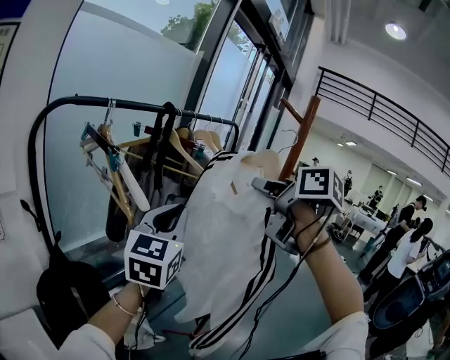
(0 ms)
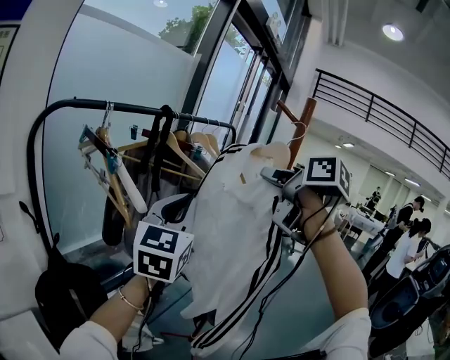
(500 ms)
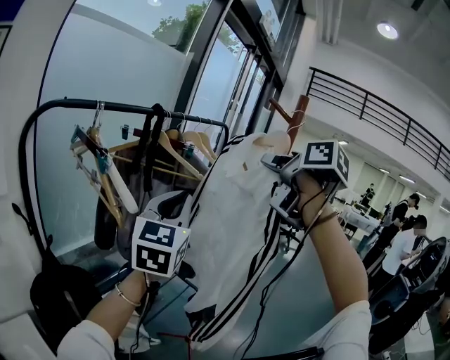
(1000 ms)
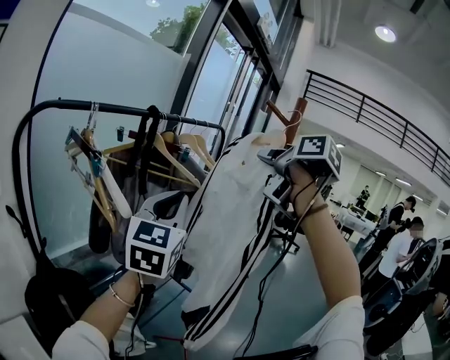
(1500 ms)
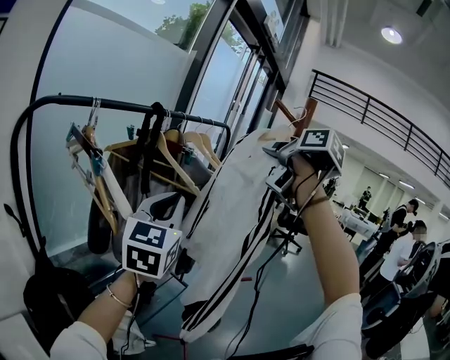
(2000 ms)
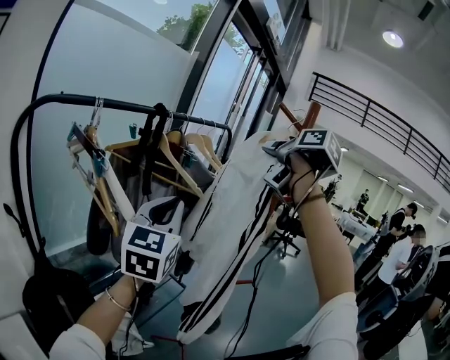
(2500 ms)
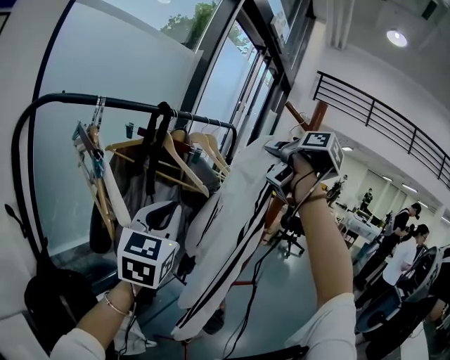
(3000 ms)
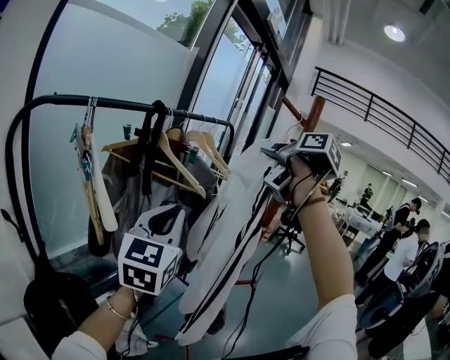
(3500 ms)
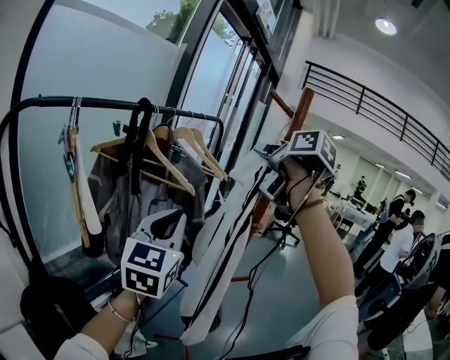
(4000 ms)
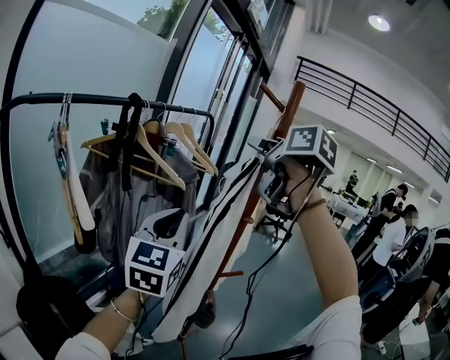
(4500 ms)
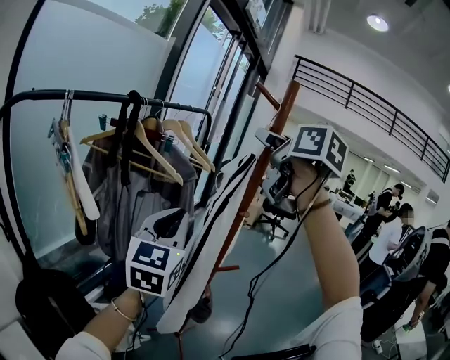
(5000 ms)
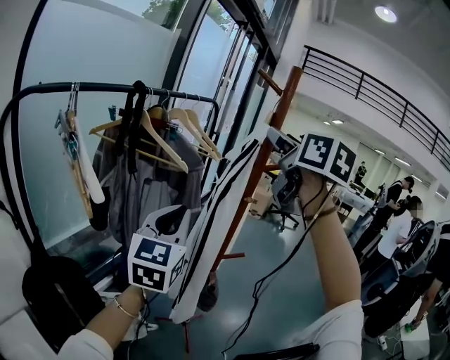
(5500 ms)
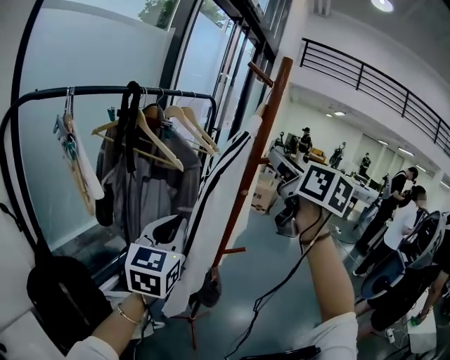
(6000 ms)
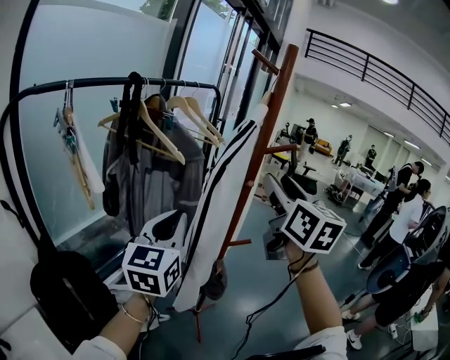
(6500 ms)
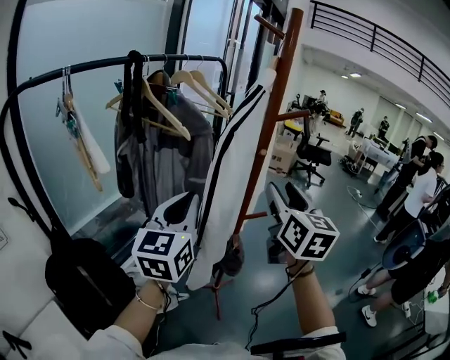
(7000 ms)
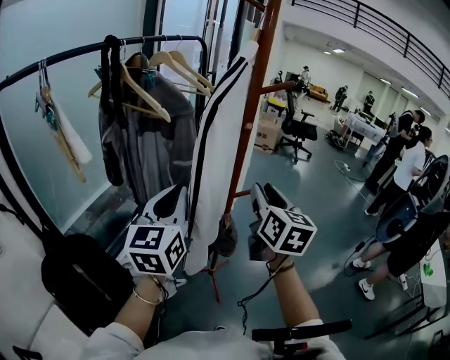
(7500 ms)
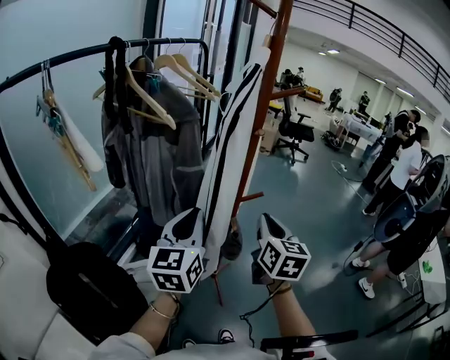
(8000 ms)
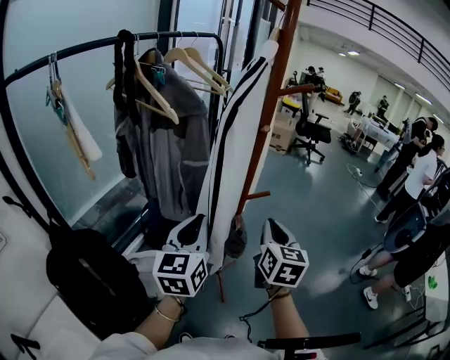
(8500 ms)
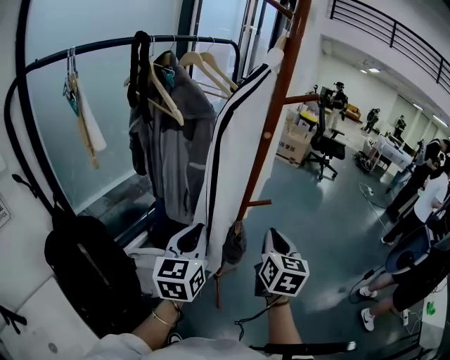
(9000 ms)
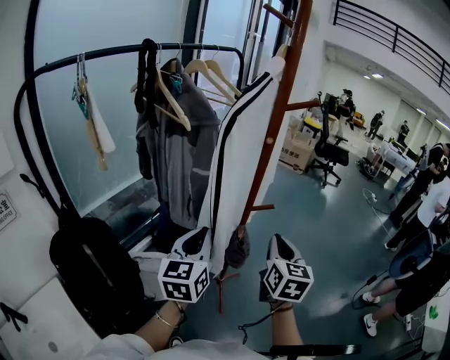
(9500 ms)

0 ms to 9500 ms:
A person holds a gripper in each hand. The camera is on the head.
0 ms to 2000 ms: The left gripper changes place by approximately 5 cm. Meanwhile the right gripper moves upward and forward, roughly 10 cm.
2000 ms to 4000 ms: The grippers make only small movements.
4000 ms to 5500 ms: The right gripper moves backward, roughly 10 cm, turns by approximately 30 degrees, and opens its fingers. The left gripper moves some 5 cm.
5500 ms to 7500 ms: The left gripper heads downward, covering some 10 cm, while the right gripper moves downward, some 30 cm.
7500 ms to 9500 ms: The grippers both shift downward by approximately 10 cm. The right gripper closes.

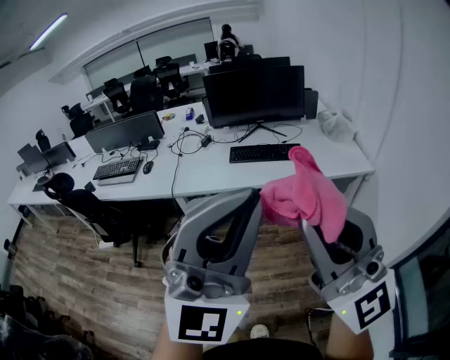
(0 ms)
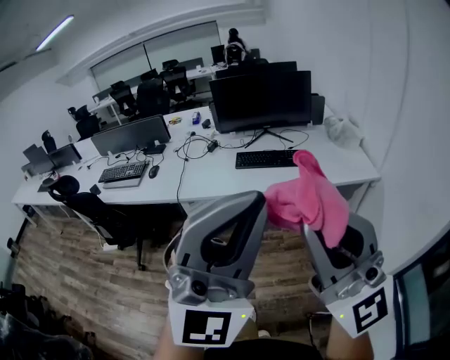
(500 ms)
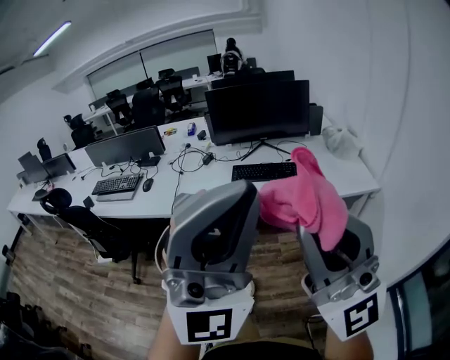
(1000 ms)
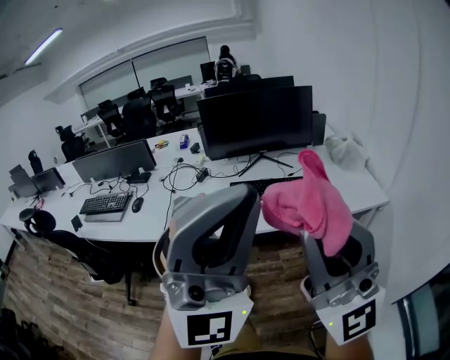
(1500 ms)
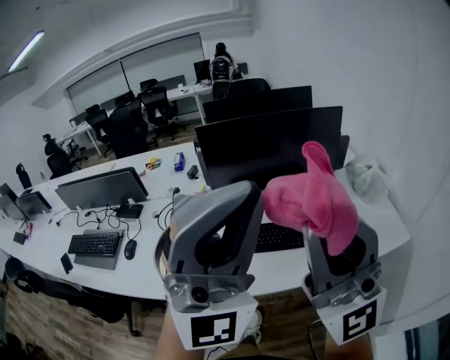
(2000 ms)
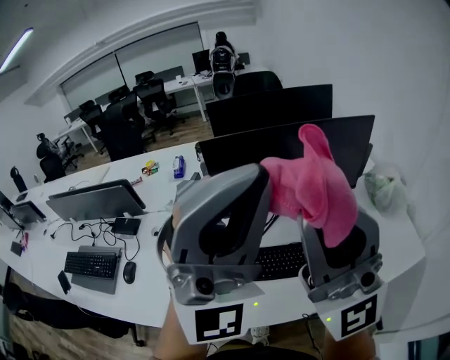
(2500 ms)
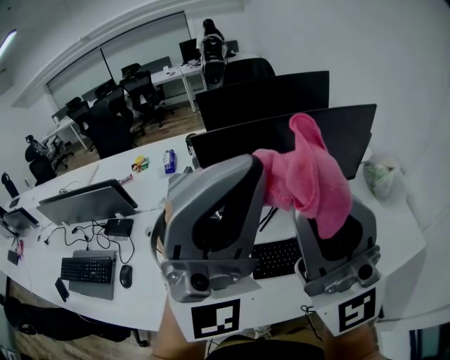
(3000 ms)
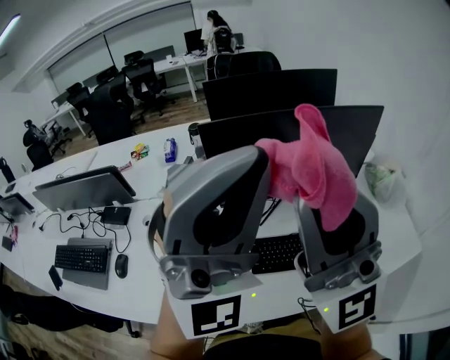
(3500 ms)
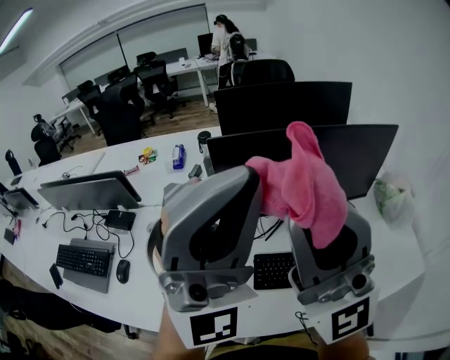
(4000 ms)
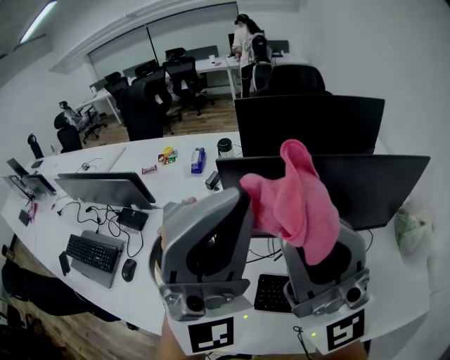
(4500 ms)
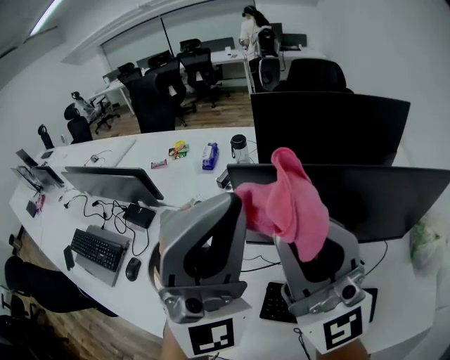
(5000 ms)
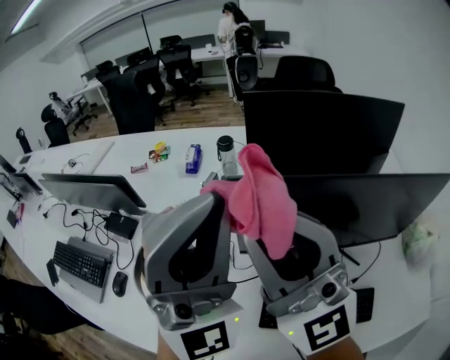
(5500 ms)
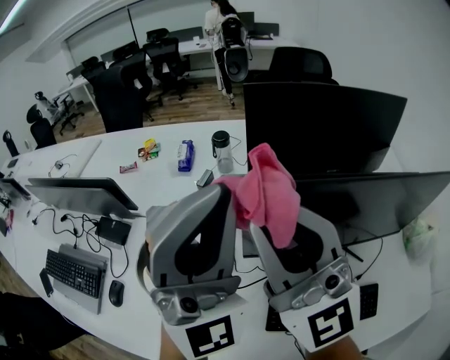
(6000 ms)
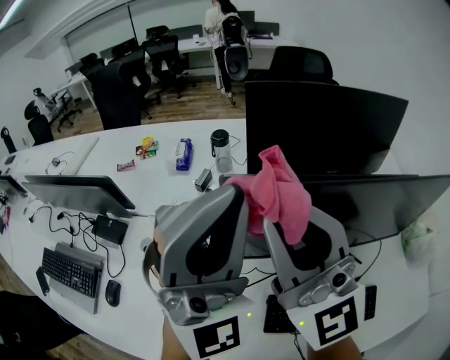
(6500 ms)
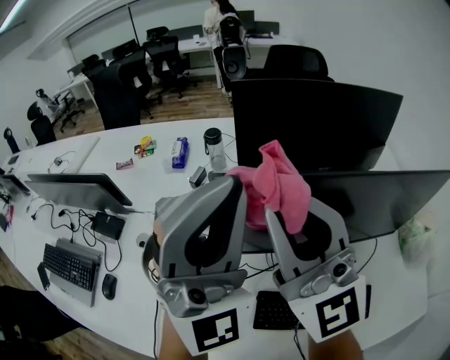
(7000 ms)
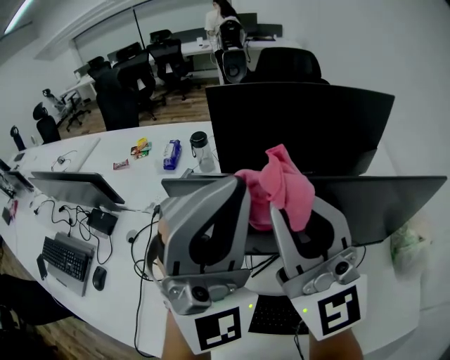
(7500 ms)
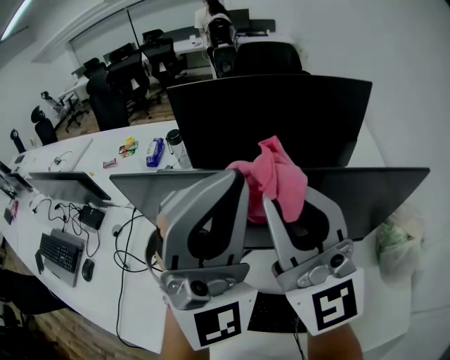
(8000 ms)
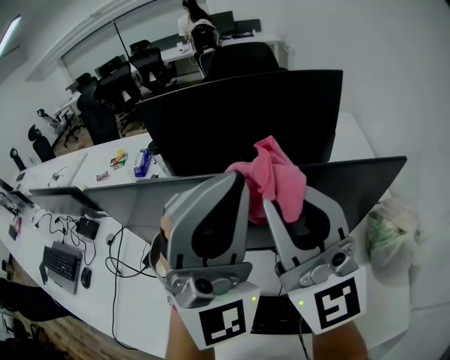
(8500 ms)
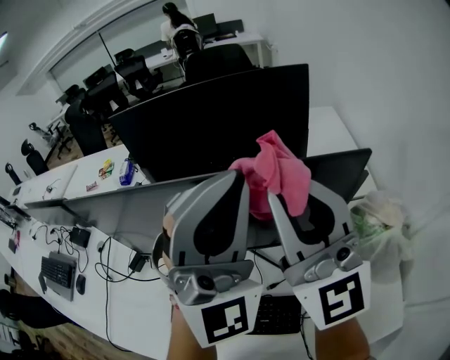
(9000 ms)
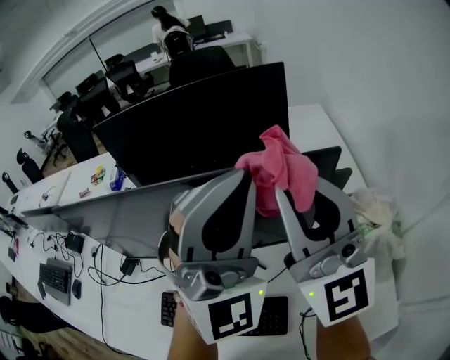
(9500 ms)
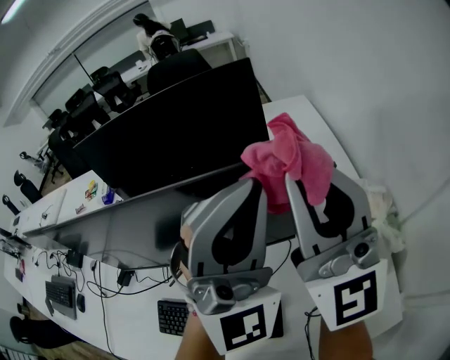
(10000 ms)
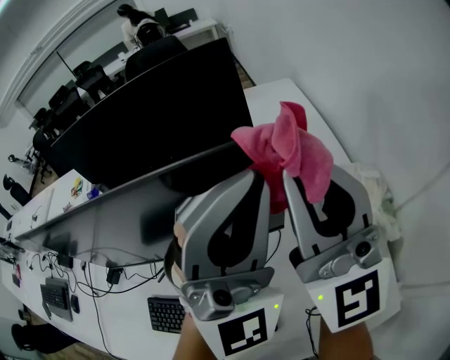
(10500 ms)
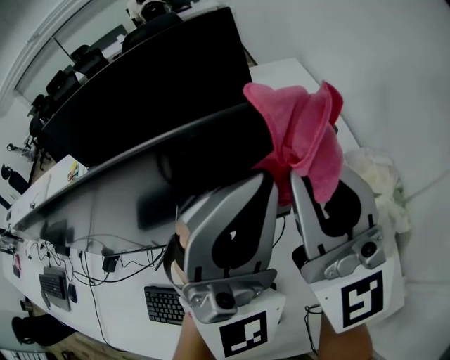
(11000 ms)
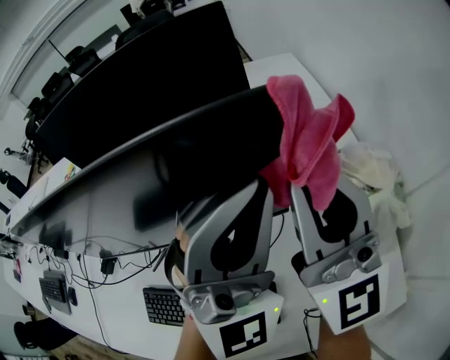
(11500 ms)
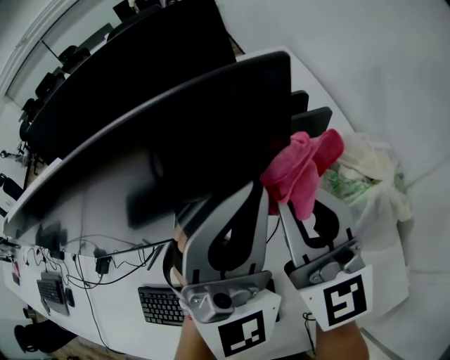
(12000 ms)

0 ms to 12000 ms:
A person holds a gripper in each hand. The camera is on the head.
0 ms to 2000 ms: Both grippers are carried forward, about 50 cm.
2000 ms to 4000 ms: Both grippers travel together forward, approximately 25 cm.
4000 ms to 6000 ms: Both grippers move forward, roughly 20 cm. The right gripper turns by about 20 degrees.
6000 ms to 8000 ms: The grippers both shift to the right by some 25 cm.
8000 ms to 10000 ms: The grippers both shift to the right by some 30 cm.
10000 ms to 12000 ms: The right gripper travels downward by approximately 15 cm, while the left gripper travels downward by about 10 cm.

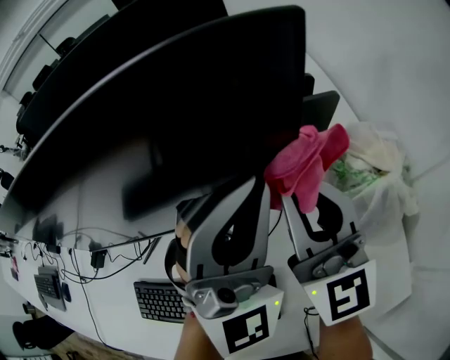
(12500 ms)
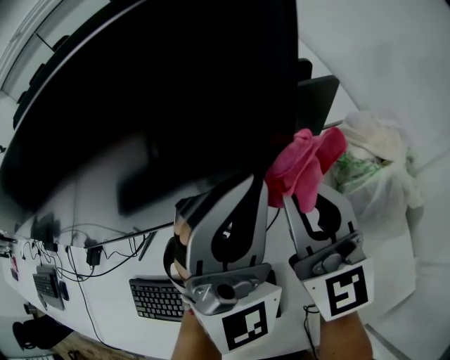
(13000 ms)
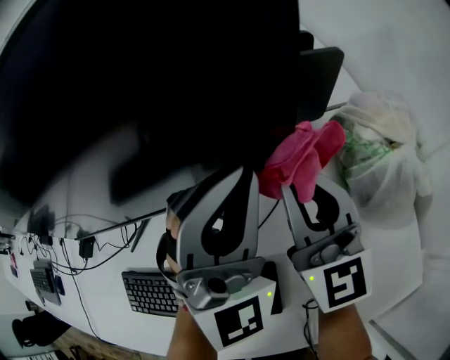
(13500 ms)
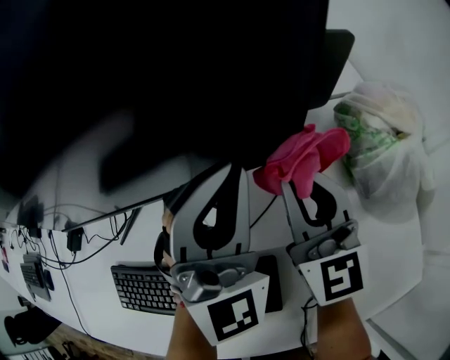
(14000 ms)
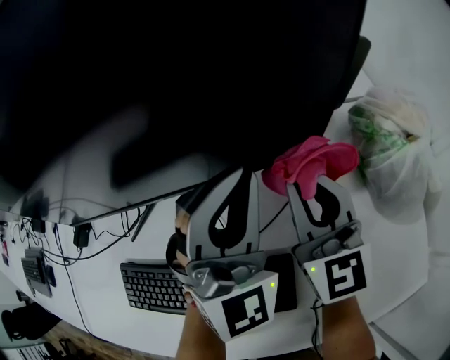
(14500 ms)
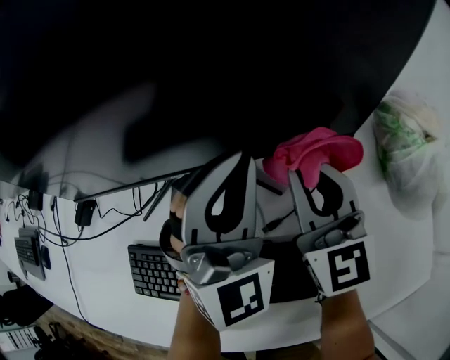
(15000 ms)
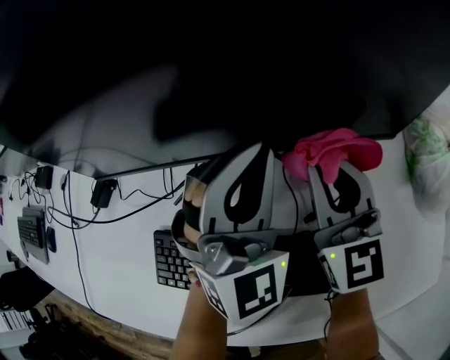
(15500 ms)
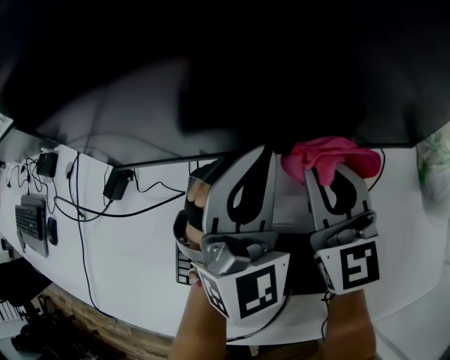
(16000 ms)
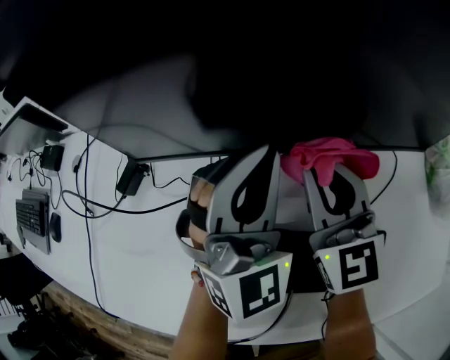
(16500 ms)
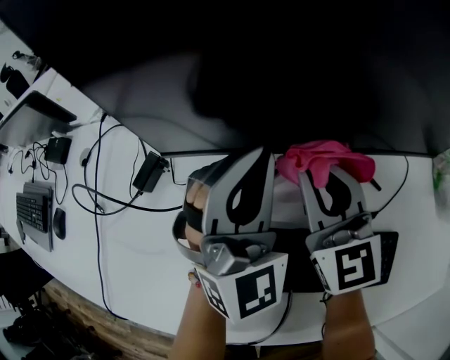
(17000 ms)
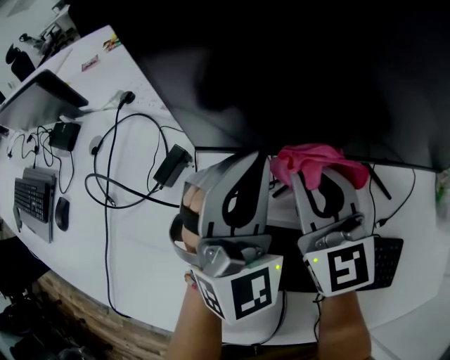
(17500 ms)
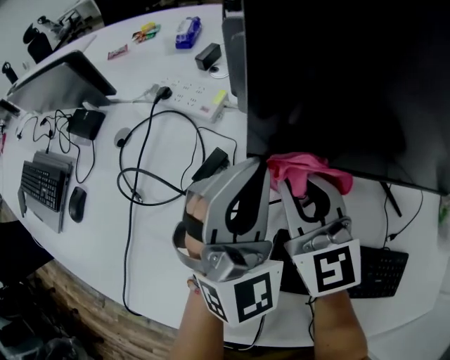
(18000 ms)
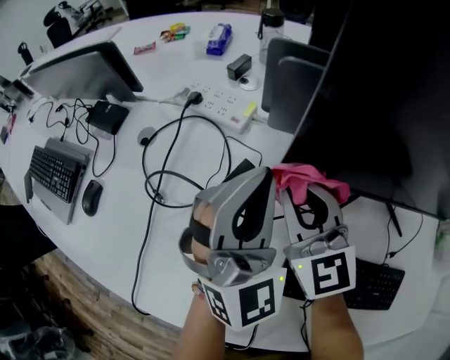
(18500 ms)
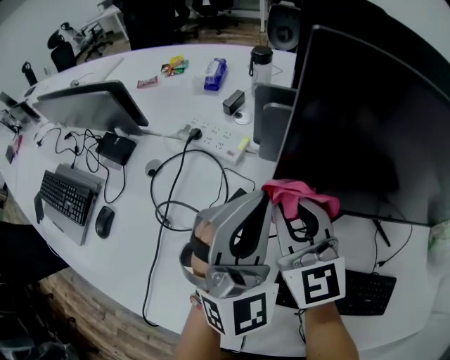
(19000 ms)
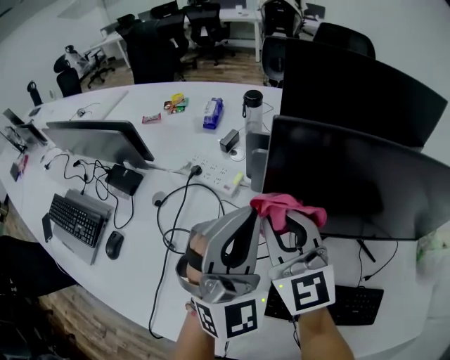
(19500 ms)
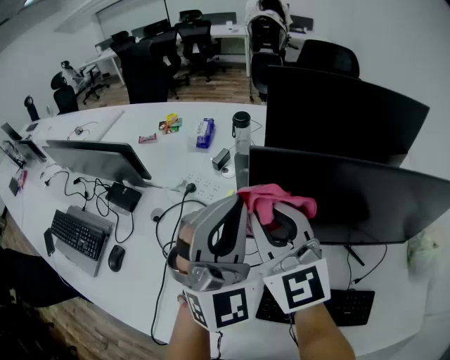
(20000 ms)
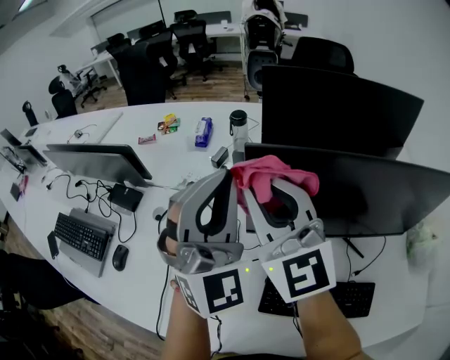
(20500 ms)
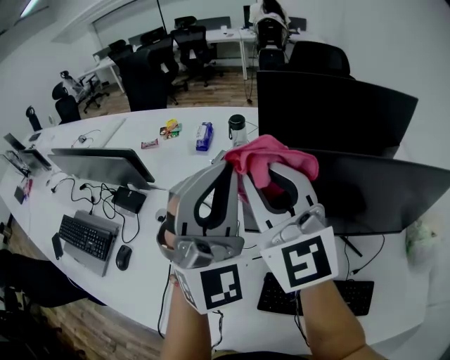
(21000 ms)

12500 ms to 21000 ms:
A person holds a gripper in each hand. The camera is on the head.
12500 ms to 14500 ms: The right gripper travels downward by some 15 cm; the left gripper travels downward and to the left by roughly 15 cm.
14500 ms to 16500 ms: Both grippers move to the left, some 25 cm.
16500 ms to 19000 ms: Both grippers travel together to the left, about 25 cm.
19000 ms to 21000 ms: The two grippers go approximately 25 cm upward.
